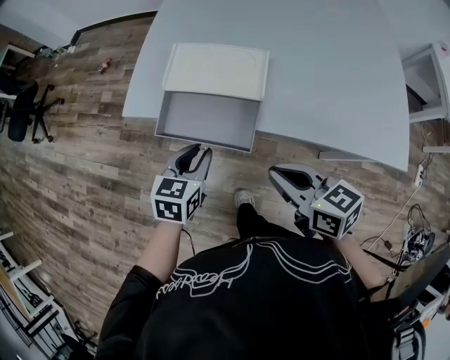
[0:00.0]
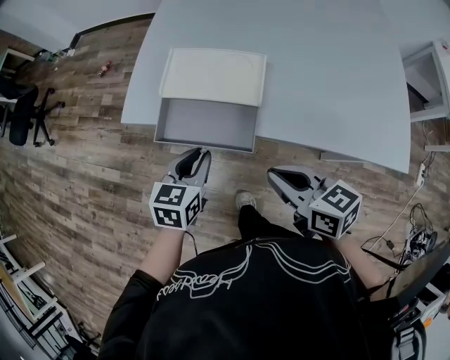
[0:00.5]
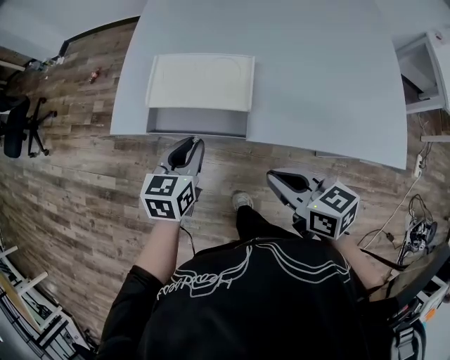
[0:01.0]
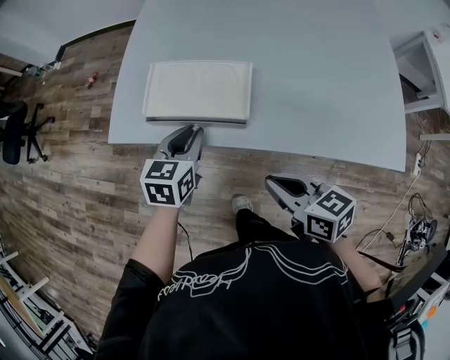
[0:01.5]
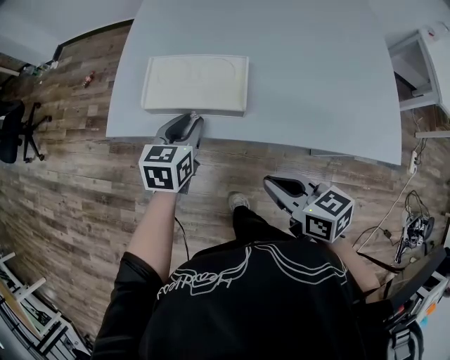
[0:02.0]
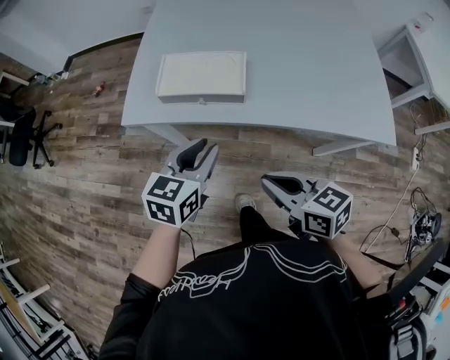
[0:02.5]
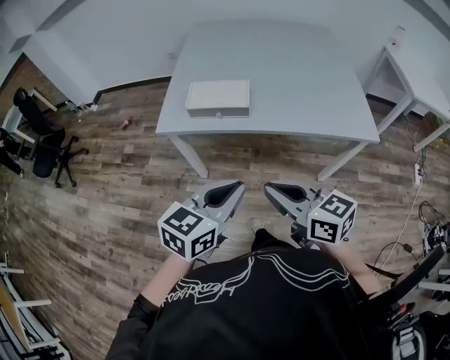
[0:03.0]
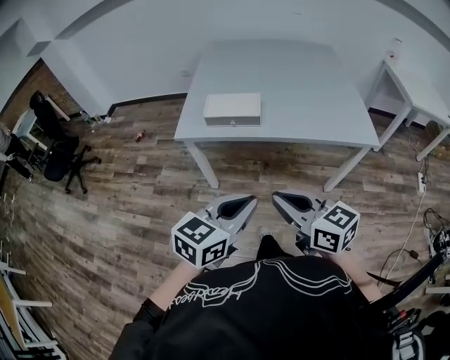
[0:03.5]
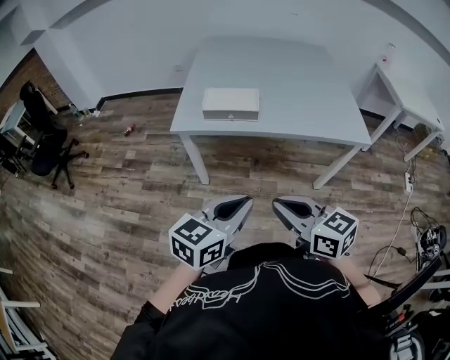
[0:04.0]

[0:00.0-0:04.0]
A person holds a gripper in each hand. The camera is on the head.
0:00.0 to 0:02.0: The left gripper shifts approximately 10 cm forward.
0:02.0 to 0:04.0: The grippers both shift backward and upward by roughly 40 cm. The right gripper swivels about 20 degrees, while the left gripper rotates about 30 degrees, and closes.

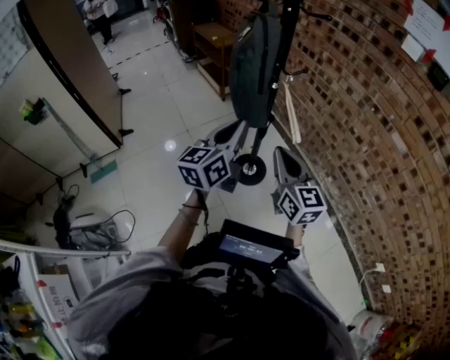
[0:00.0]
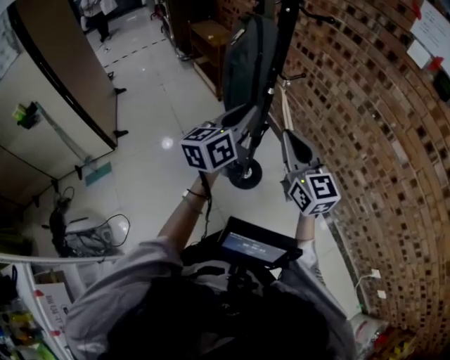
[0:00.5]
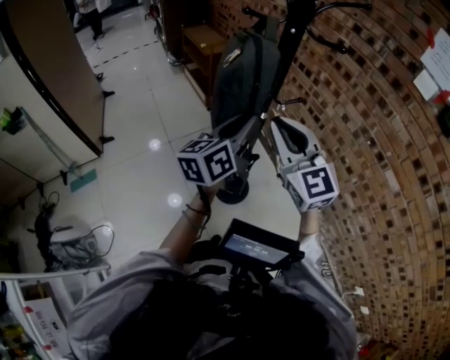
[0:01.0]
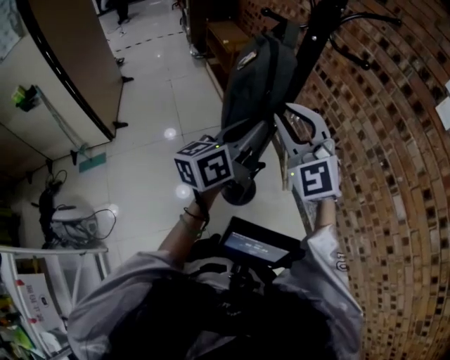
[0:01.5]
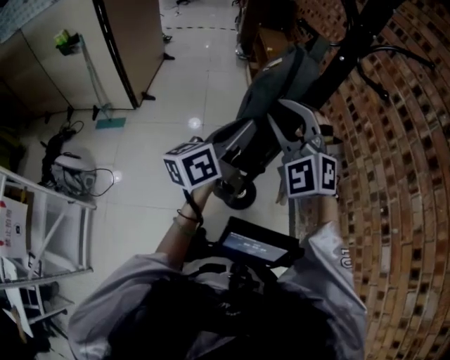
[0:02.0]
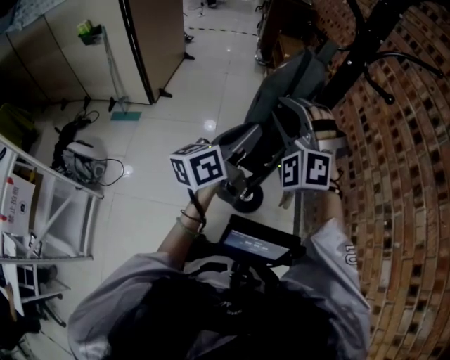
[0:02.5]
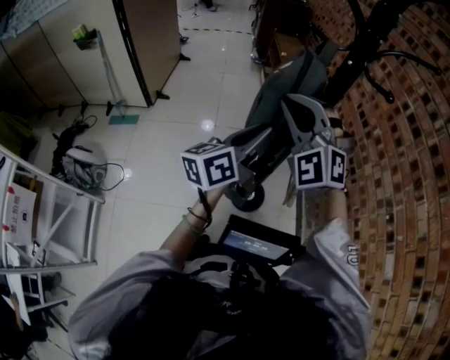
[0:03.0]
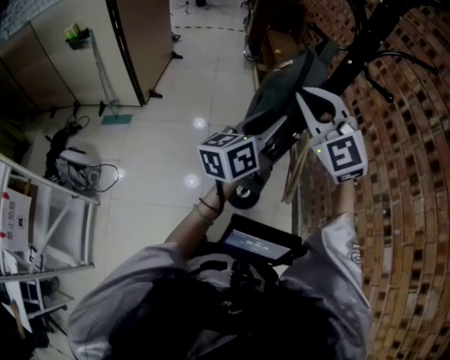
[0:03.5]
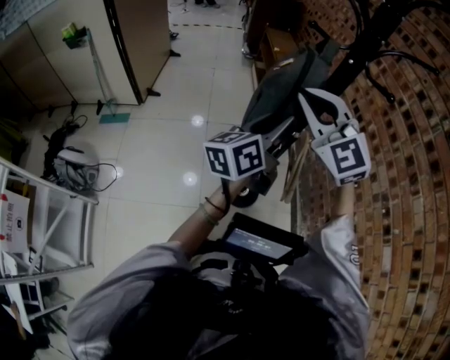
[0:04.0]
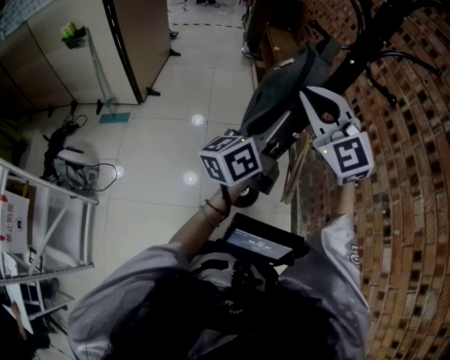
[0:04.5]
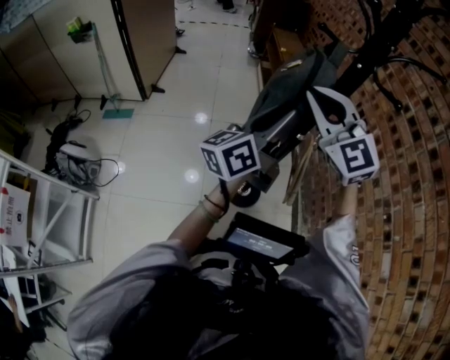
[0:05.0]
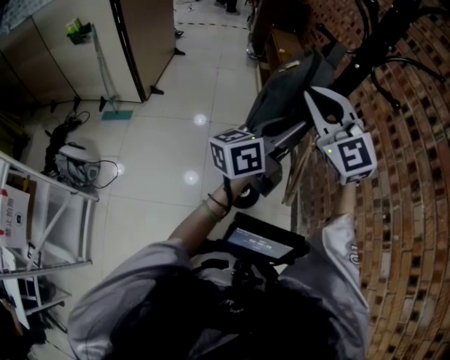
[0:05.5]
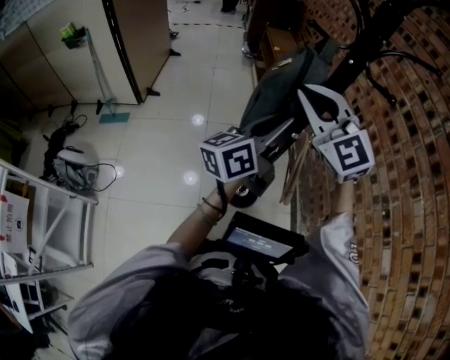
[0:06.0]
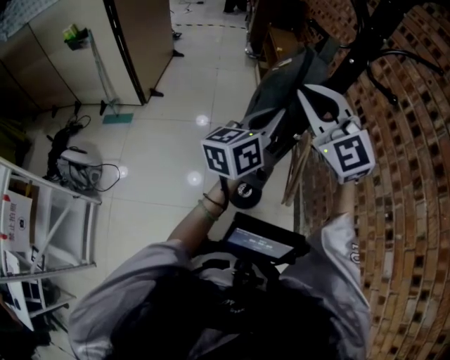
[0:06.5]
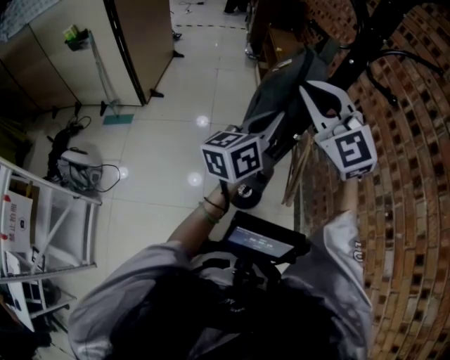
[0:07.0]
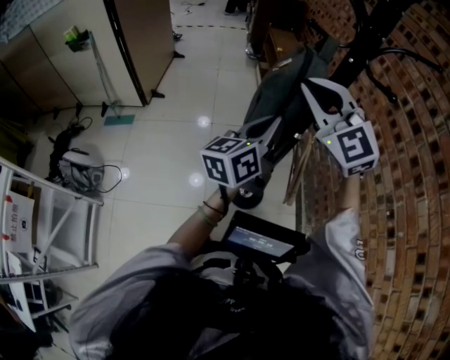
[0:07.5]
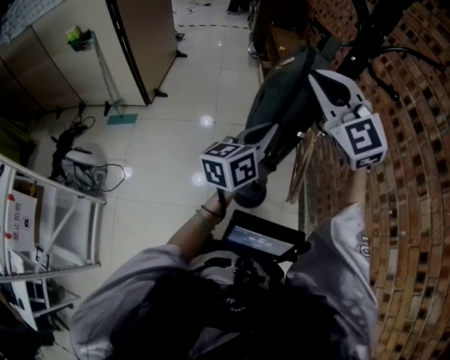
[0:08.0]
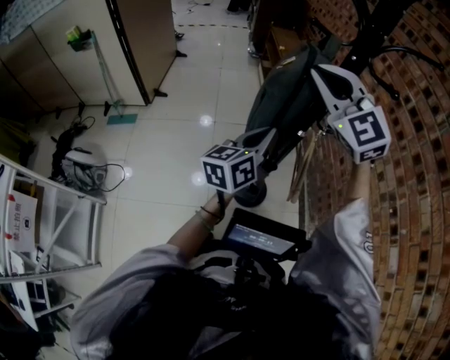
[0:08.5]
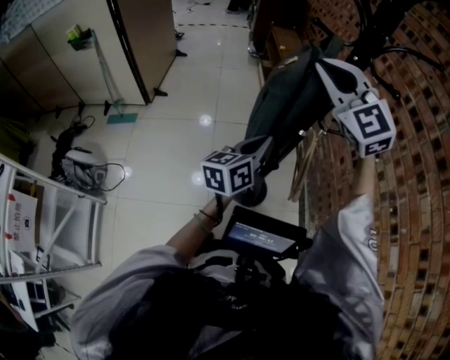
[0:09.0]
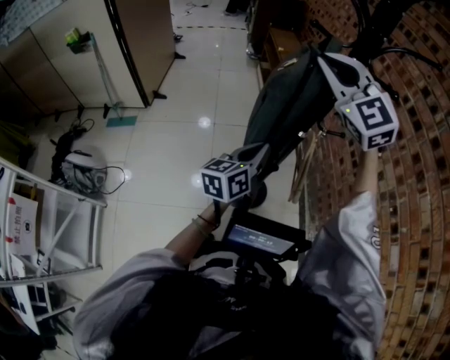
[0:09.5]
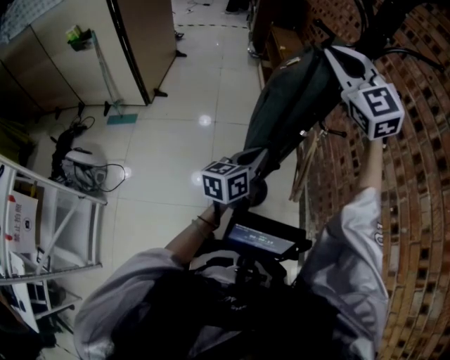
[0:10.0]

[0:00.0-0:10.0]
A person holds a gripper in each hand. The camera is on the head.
0:00.0 to 0:02.0: The left gripper shifts approximately 10 cm forward, turns by approximately 30 degrees, and opens its fingers, while the right gripper is displaced forward and upward by about 25 cm, rolls counterclockwise, seen from behind, by about 70 degrees, and opens up.
0:02.0 to 0:04.0: The right gripper shifts by some 5 cm, changes its angle by about 20 degrees, and closes. The left gripper shifts roughly 5 cm to the right.
0:04.0 to 0:06.0: The grippers stay close to where they were, moving slightly.
0:06.0 to 0:08.0: The left gripper changes place by approximately 5 cm, and closes up.
0:08.0 to 0:10.0: The left gripper heads downward, covering about 10 cm. Meanwhile the right gripper moves about 5 cm.

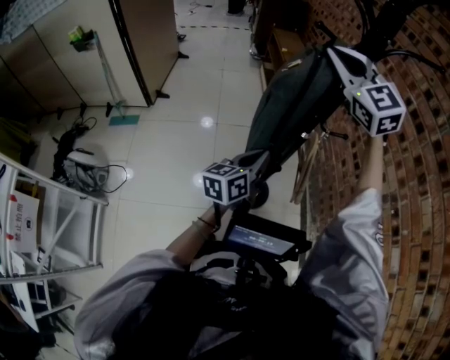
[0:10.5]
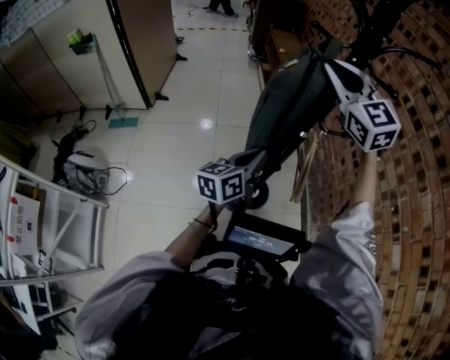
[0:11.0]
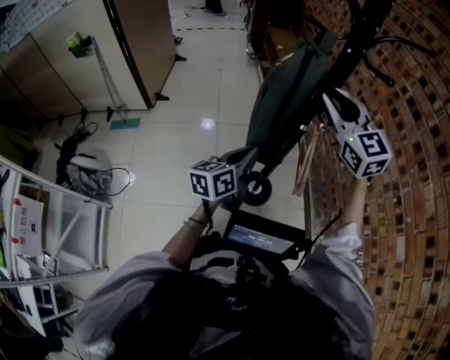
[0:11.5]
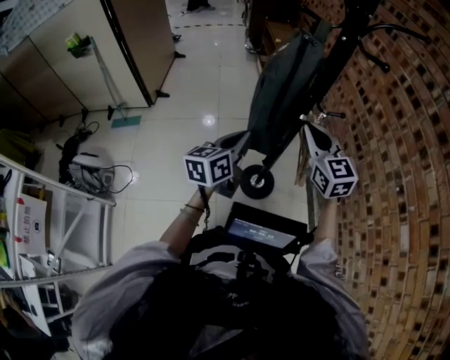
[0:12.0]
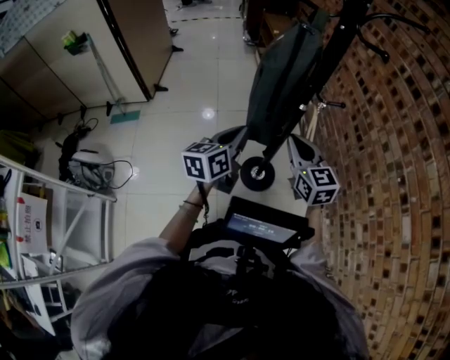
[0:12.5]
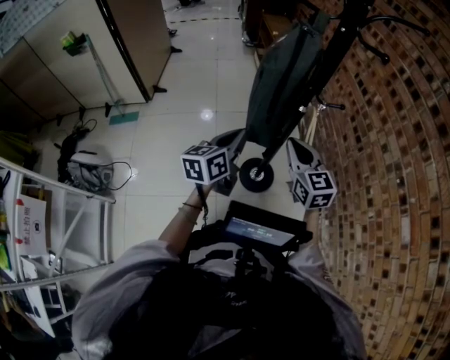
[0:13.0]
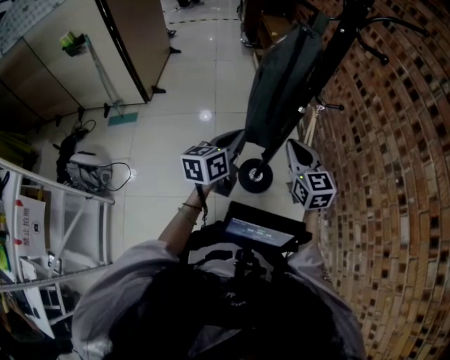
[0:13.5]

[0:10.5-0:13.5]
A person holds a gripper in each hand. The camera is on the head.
0:10.5 to 0:12.0: The left gripper changes place by some 5 cm, while the right gripper moves downward and backward, approximately 25 cm, and changes its angle by about 30 degrees.
0:12.0 to 0:13.5: The right gripper is displaced downward by about 5 cm.

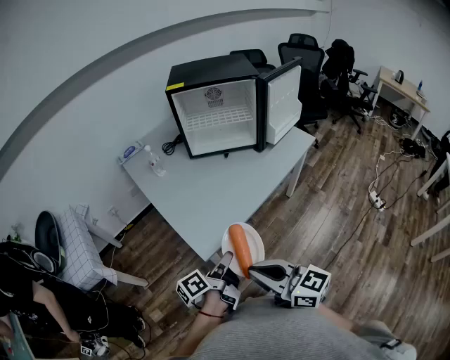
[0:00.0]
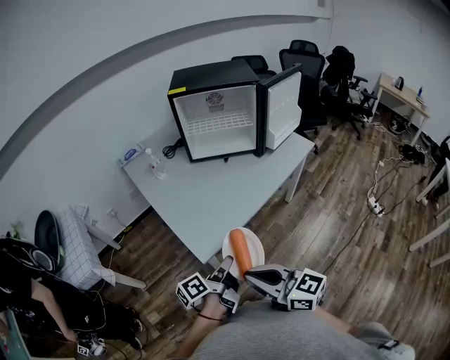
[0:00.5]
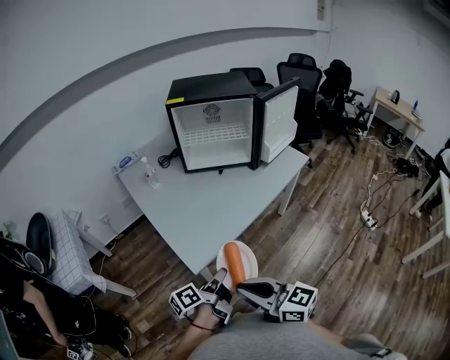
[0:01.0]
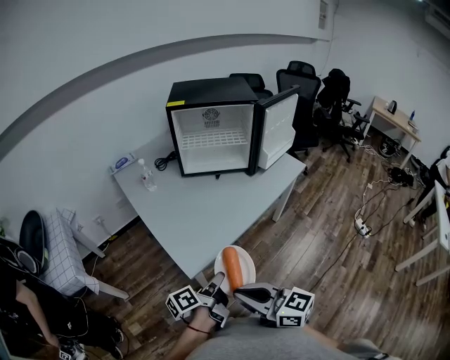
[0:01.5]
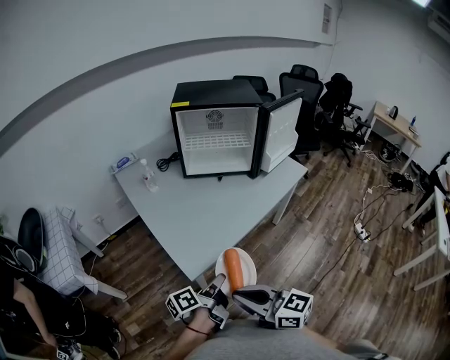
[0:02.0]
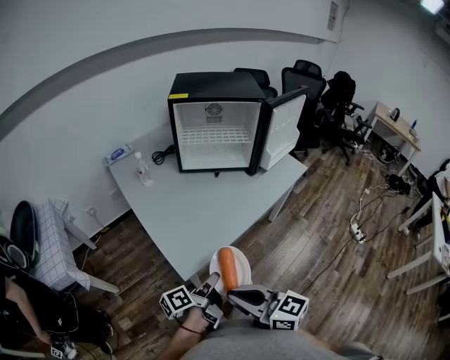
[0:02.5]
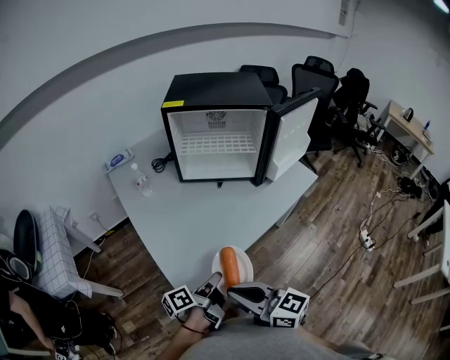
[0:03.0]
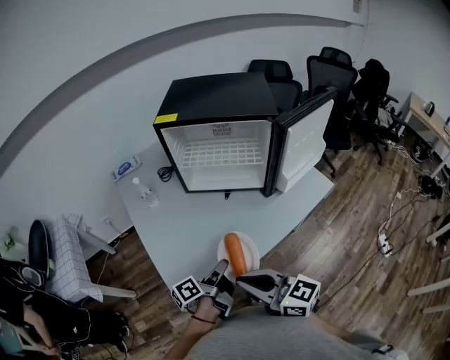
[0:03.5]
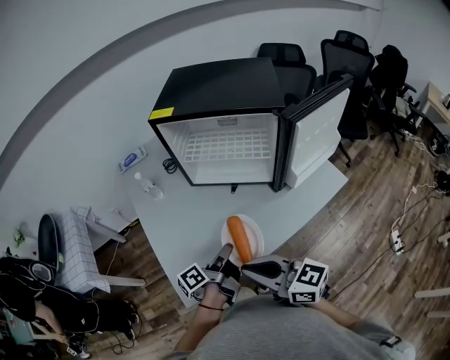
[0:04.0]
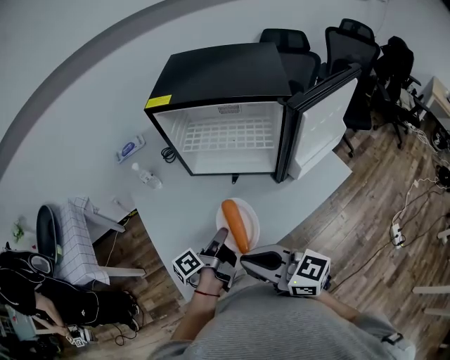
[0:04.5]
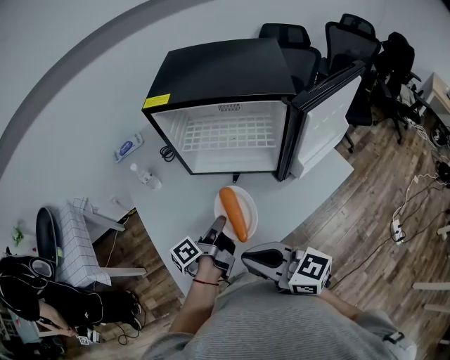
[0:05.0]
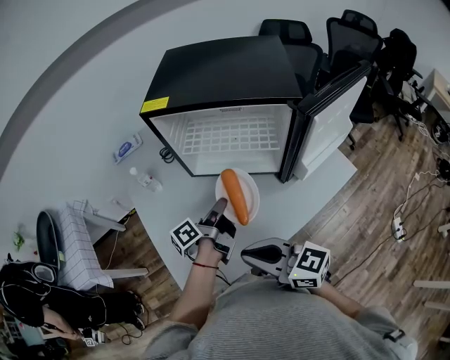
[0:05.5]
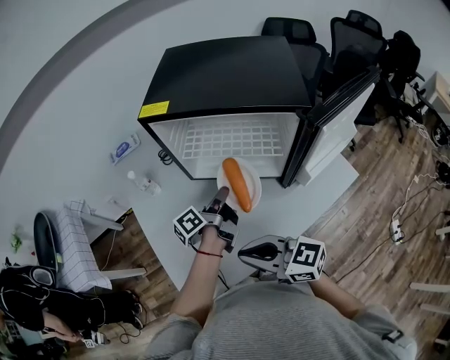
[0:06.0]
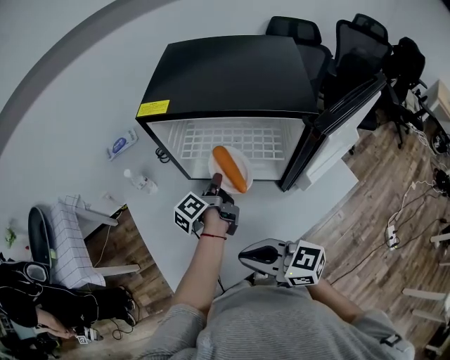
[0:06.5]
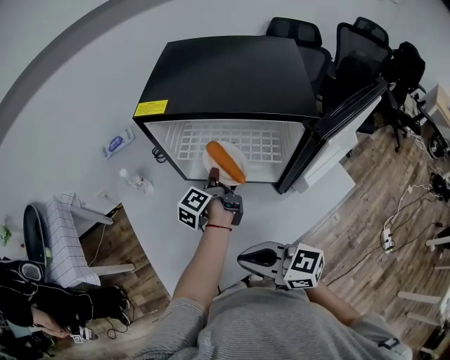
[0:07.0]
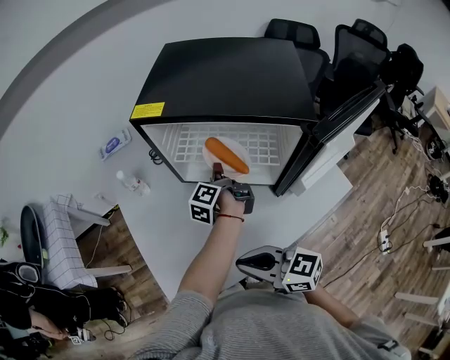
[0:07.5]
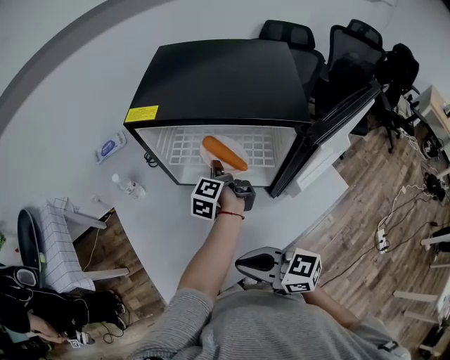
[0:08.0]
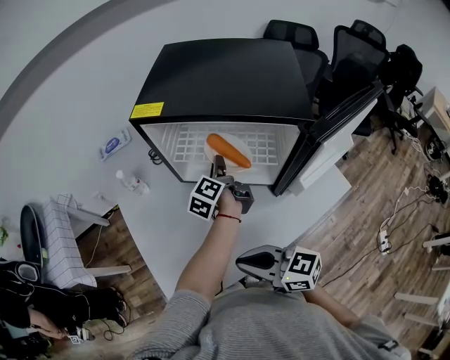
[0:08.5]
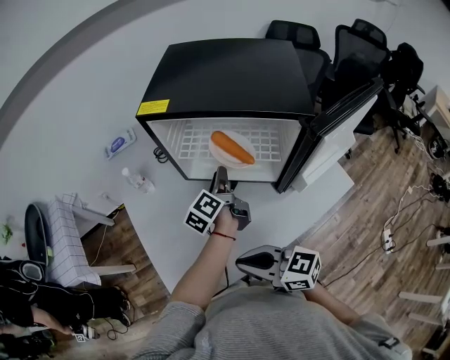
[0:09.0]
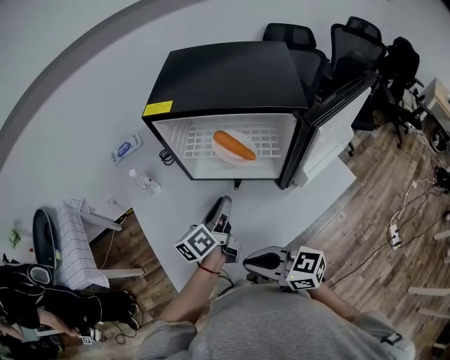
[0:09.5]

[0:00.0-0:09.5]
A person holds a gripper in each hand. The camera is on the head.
0:00.0 to 0:02.0: The grippers move only a little.
0:02.0 to 0:04.0: Both grippers move forward and to the right, some 30 cm.
0:04.0 to 0:05.5: The left gripper travels forward by some 15 cm, while the right gripper is displaced forward by roughly 5 cm.
0:05.5 to 0:07.5: The right gripper changes place by roughly 5 cm, while the left gripper shifts some 15 cm forward and to the right, and rotates roughly 30 degrees.
0:07.5 to 0:09.5: The left gripper goes some 15 cm backward, to the left and upward, rotates some 40 degrees, and opens its fingers.
